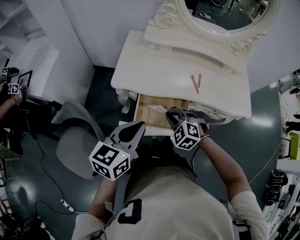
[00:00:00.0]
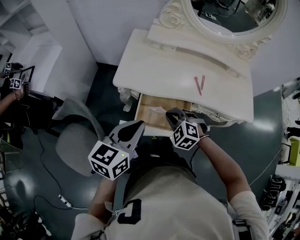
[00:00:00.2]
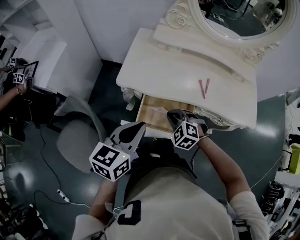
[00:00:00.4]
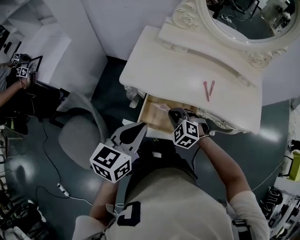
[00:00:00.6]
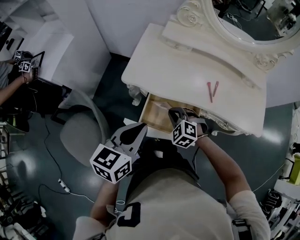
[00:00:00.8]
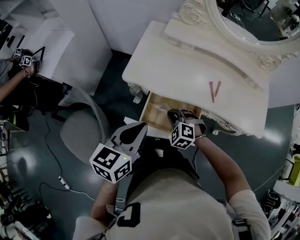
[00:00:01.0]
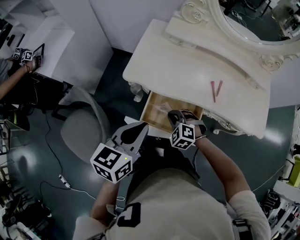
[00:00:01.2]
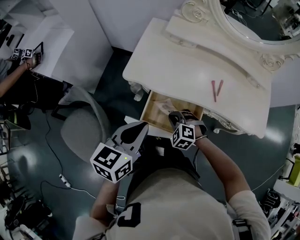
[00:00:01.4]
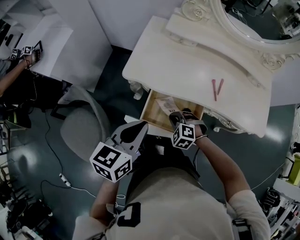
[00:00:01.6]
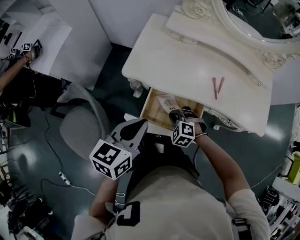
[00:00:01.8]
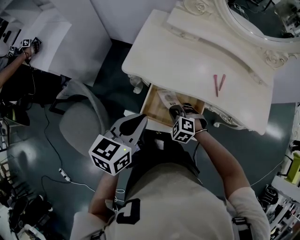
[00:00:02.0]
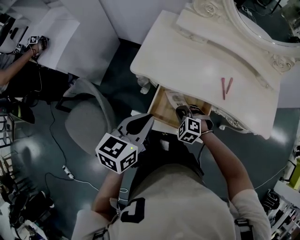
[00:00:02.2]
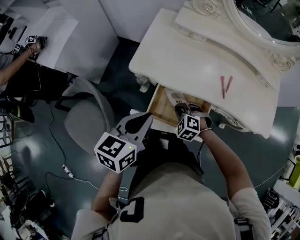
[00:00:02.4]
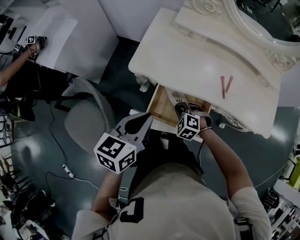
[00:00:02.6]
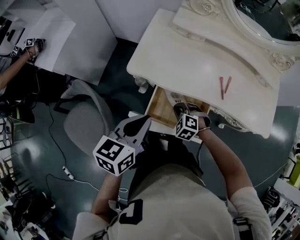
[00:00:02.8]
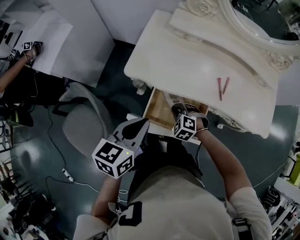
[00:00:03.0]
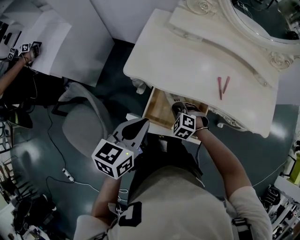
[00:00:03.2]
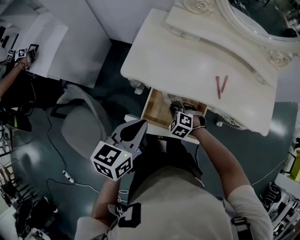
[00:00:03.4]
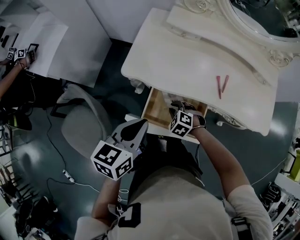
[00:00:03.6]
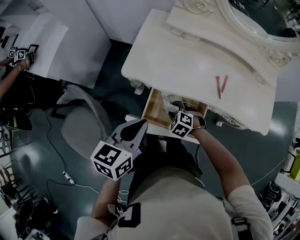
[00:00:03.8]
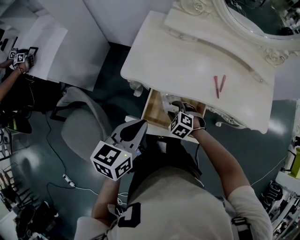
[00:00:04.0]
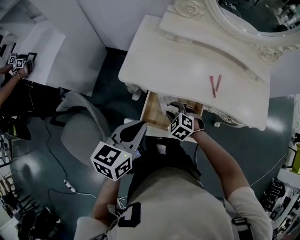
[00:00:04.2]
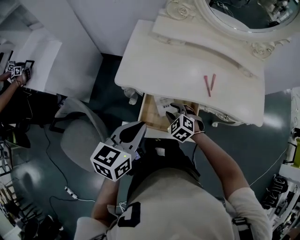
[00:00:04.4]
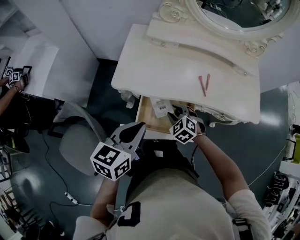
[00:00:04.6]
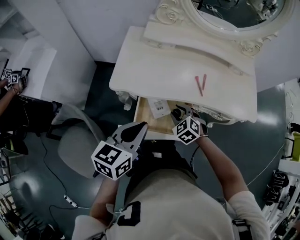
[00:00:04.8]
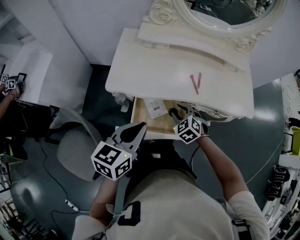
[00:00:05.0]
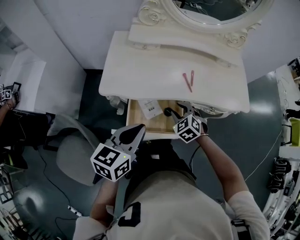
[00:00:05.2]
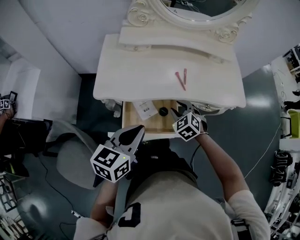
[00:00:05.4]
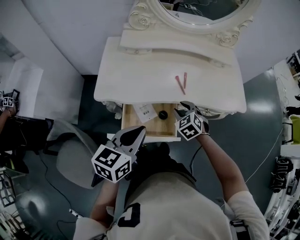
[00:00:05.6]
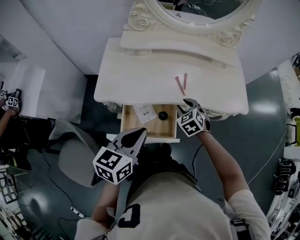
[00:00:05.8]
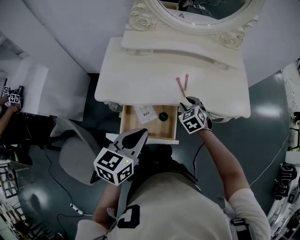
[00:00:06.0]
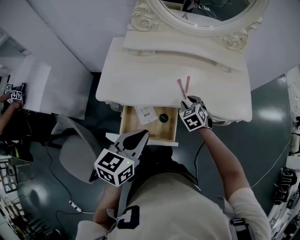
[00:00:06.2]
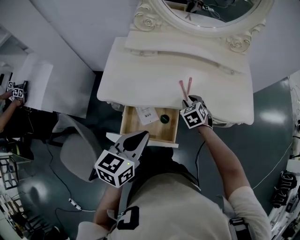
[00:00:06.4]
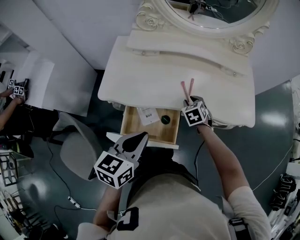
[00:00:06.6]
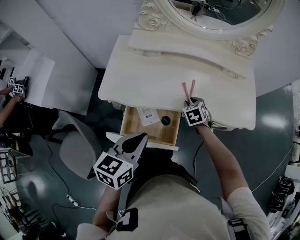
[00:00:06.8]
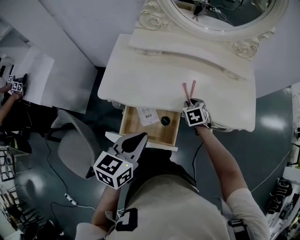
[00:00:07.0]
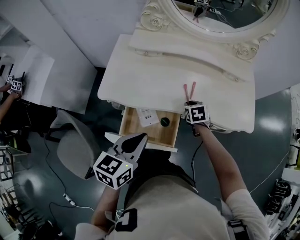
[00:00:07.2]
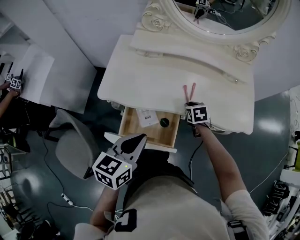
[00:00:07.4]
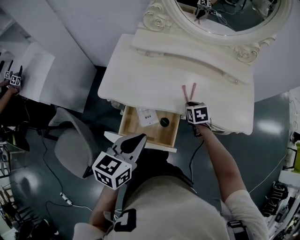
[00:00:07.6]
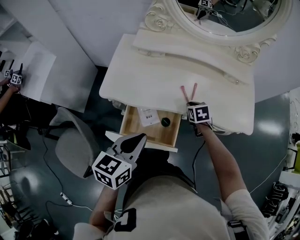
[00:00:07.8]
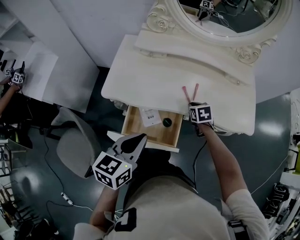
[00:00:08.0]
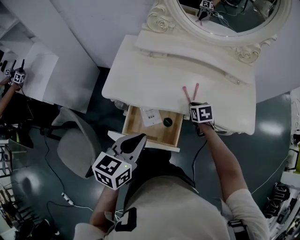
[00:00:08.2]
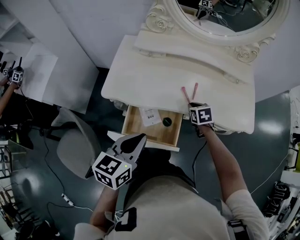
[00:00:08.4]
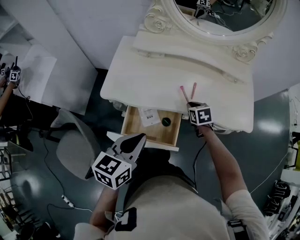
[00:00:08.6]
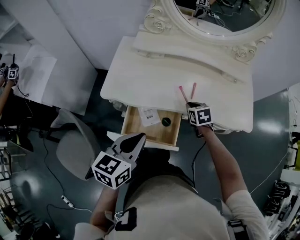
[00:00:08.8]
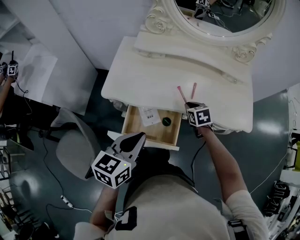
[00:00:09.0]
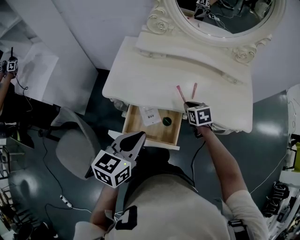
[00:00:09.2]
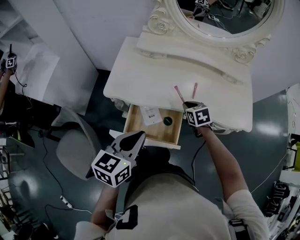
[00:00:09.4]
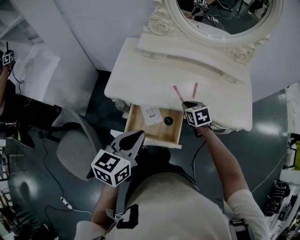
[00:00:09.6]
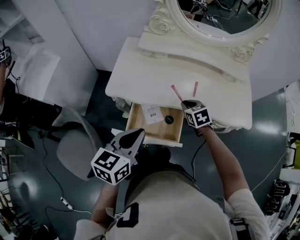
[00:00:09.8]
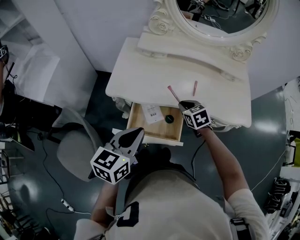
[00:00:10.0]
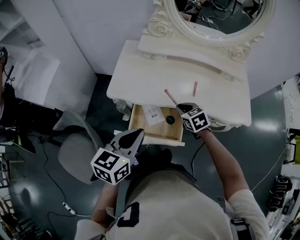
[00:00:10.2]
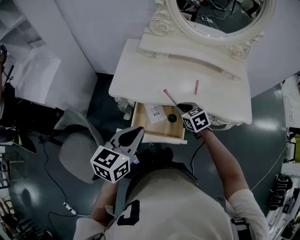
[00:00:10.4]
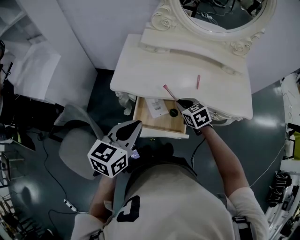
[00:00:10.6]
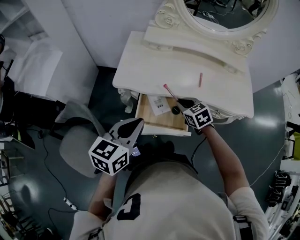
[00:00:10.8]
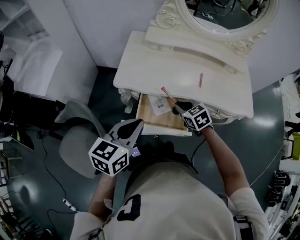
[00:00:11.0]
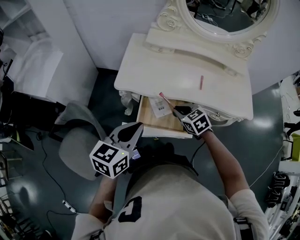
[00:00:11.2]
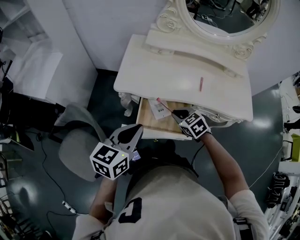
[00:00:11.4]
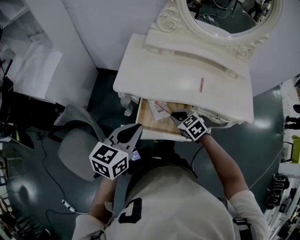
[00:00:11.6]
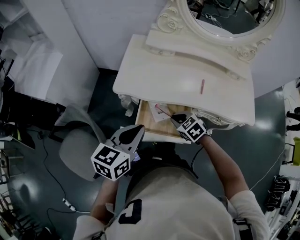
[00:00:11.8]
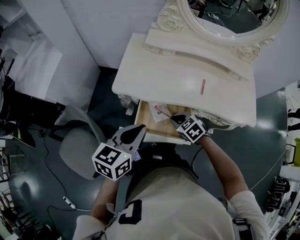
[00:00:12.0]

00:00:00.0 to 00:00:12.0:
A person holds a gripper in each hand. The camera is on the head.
00:00:00.0 to 00:00:01.6: The right gripper goes approximately 10 cm downward.
00:00:01.6 to 00:00:03.0: The grippers stay close to where they were, moving slightly.
00:00:03.0 to 00:00:04.4: The right gripper opens up.
00:00:04.4 to 00:00:06.0: The right gripper goes some 20 cm to the right and forward, and changes its angle by approximately 30 degrees. The left gripper moves to the right, some 10 cm.
00:00:06.0 to 00:00:07.6: The right gripper goes roughly 5 cm forward, changes its angle by roughly 30 degrees, and closes up.
00:00:07.6 to 00:00:09.0: The grippers make only small movements.
00:00:09.0 to 00:00:10.4: The right gripper moves to the left and backward, approximately 10 cm; the left gripper shifts about 5 cm to the left.
00:00:10.4 to 00:00:12.0: The right gripper shifts roughly 5 cm to the left and downward.

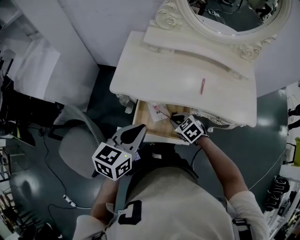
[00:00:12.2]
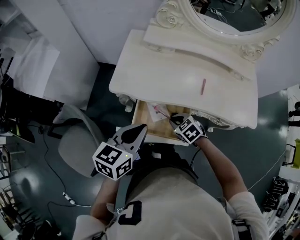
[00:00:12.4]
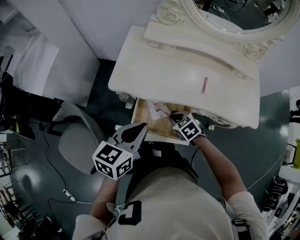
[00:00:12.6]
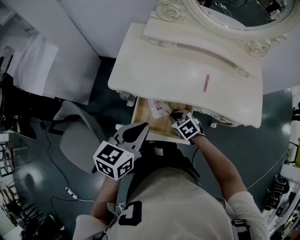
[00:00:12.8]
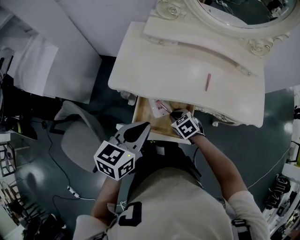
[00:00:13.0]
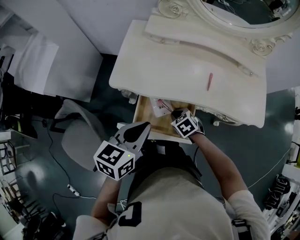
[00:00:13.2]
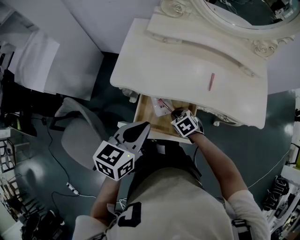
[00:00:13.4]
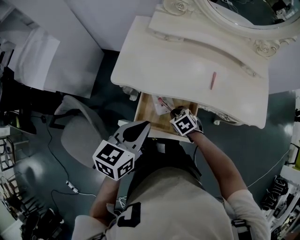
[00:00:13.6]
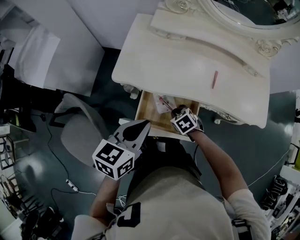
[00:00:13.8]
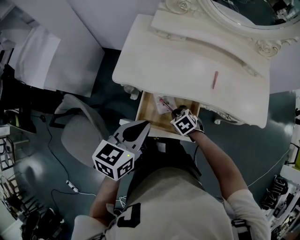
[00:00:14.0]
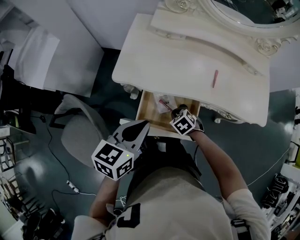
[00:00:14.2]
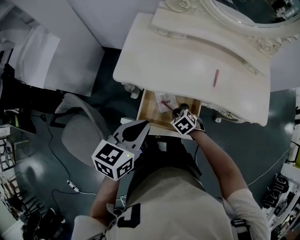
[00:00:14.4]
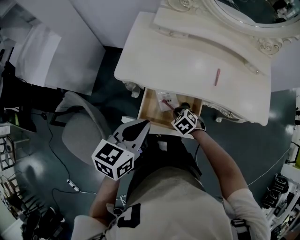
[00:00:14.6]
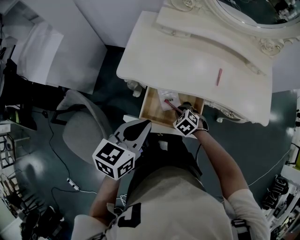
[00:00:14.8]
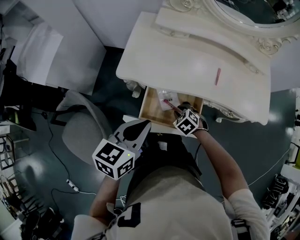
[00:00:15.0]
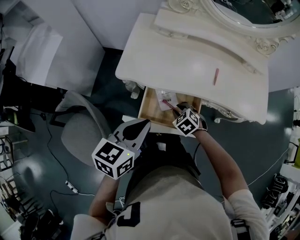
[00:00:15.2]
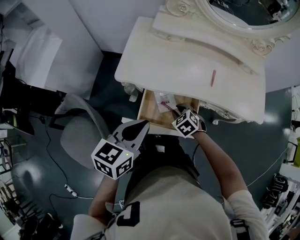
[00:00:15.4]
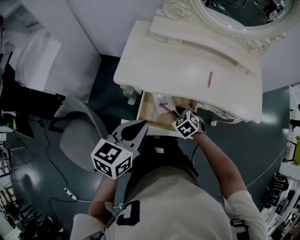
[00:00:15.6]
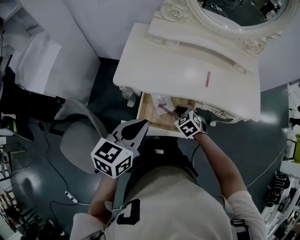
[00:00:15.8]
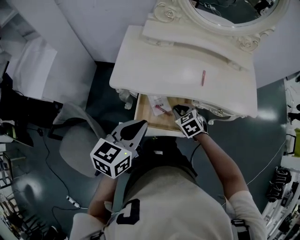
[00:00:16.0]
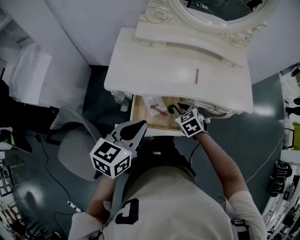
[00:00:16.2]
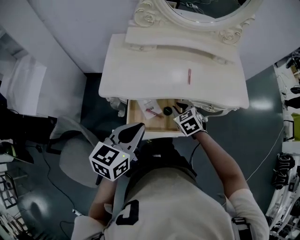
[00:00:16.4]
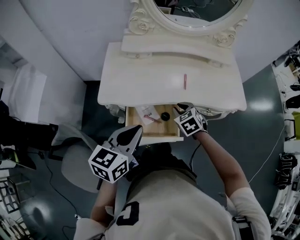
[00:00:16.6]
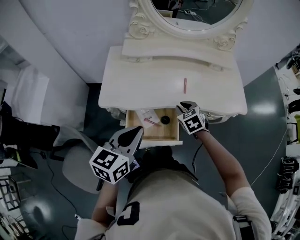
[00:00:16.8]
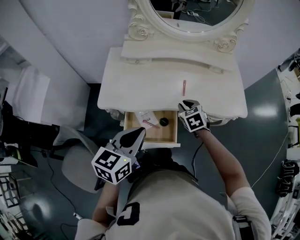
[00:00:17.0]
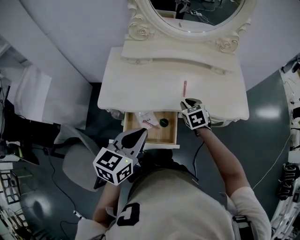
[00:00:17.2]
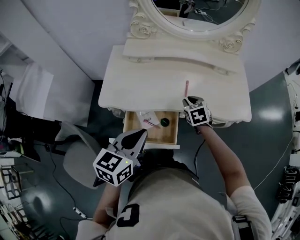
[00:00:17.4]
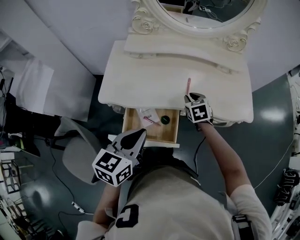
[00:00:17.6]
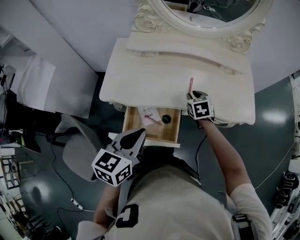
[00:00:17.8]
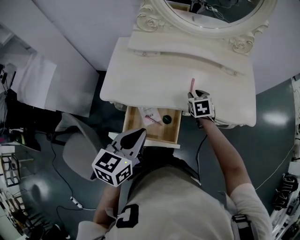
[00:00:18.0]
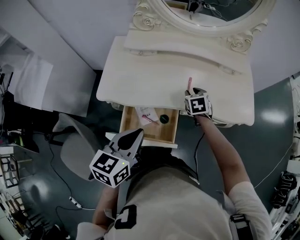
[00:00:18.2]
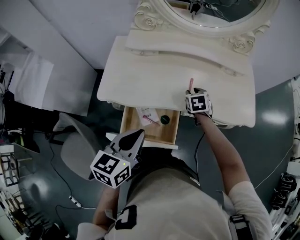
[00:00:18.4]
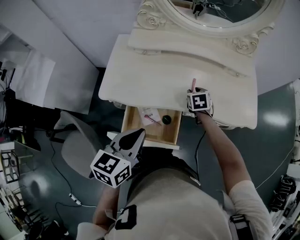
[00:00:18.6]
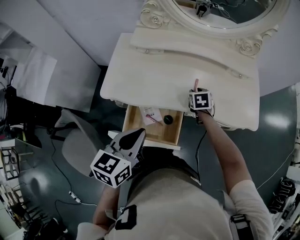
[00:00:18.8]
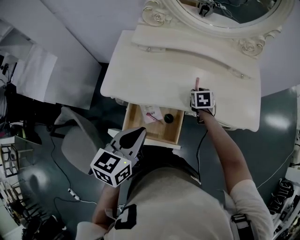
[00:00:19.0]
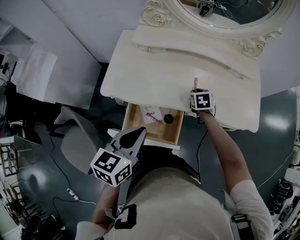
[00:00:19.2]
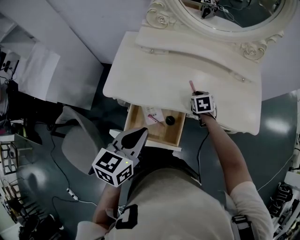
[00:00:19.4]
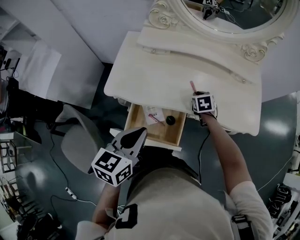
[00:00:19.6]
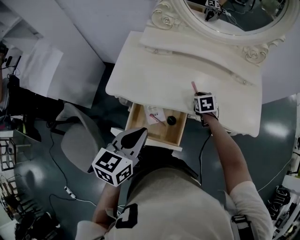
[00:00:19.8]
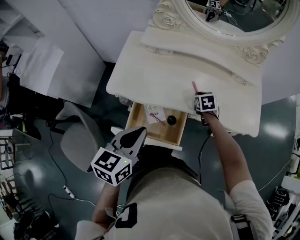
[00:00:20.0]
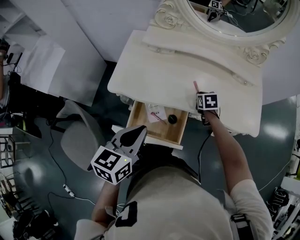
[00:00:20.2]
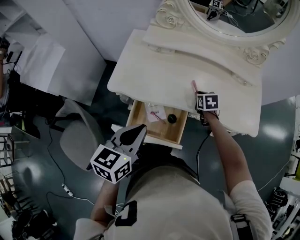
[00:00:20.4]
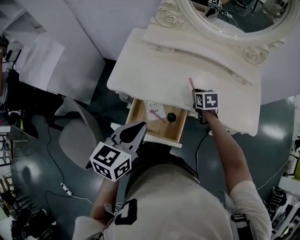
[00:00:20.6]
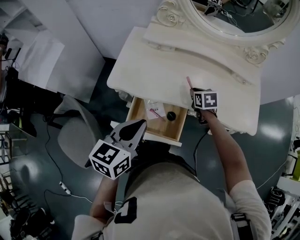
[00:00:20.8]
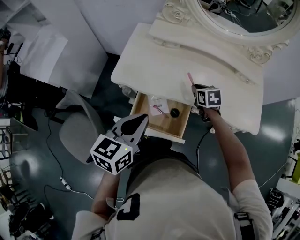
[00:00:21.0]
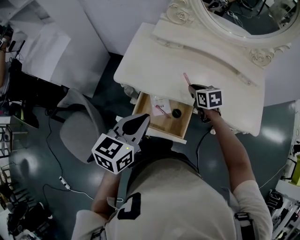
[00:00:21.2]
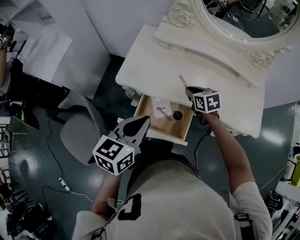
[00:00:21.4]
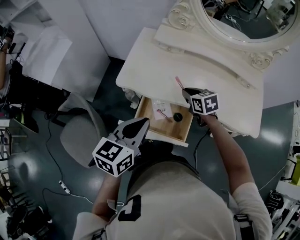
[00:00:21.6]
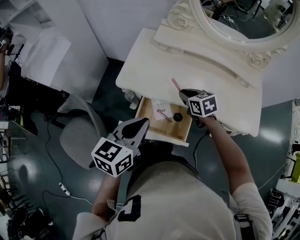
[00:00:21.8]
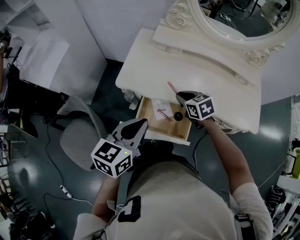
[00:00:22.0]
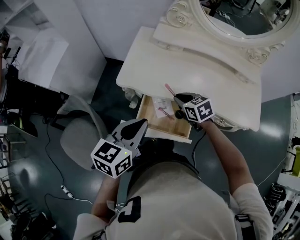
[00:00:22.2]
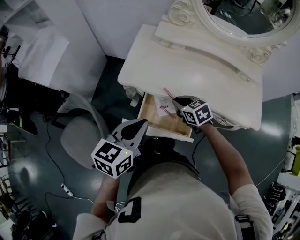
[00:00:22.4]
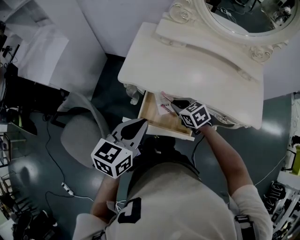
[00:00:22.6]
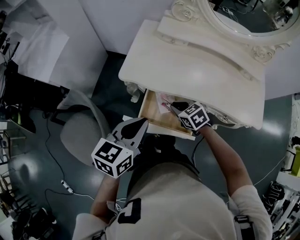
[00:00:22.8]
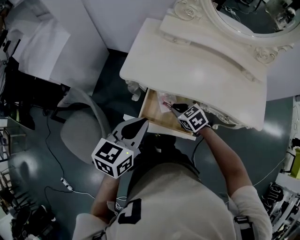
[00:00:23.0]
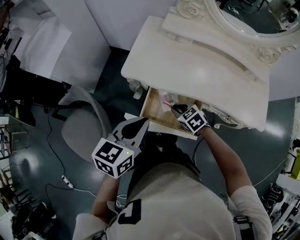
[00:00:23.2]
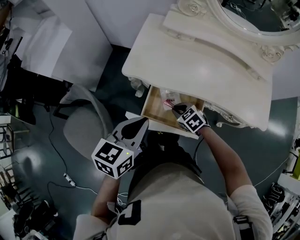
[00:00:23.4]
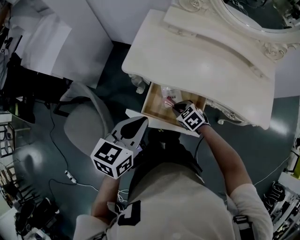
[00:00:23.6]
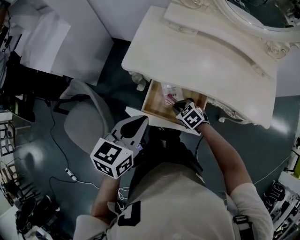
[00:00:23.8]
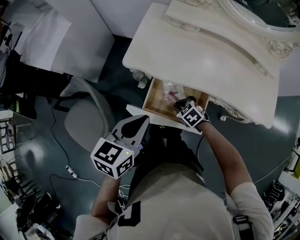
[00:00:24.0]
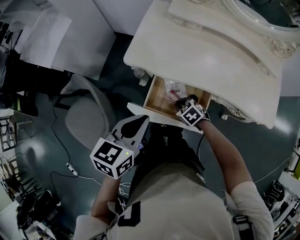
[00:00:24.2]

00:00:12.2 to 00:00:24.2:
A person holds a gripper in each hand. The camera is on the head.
00:00:12.2 to 00:00:13.8: The right gripper goes roughly 10 cm downward.
00:00:13.8 to 00:00:15.2: The grippers stay close to where they were, moving slightly.
00:00:15.2 to 00:00:16.6: The left gripper ends up roughly 5 cm from where it was, while the right gripper moves upward and to the right, about 15 cm, and swivels about 30 degrees.
00:00:16.6 to 00:00:18.2: The left gripper shifts about 5 cm to the right. Meanwhile the right gripper shifts approximately 15 cm forward and to the right.
00:00:18.2 to 00:00:19.8: There are only small adjustments of the grippers.
00:00:19.8 to 00:00:21.2: The right gripper goes about 10 cm to the left and upward.
00:00:21.2 to 00:00:22.6: The right gripper shifts about 15 cm to the left and backward. The left gripper is displaced to the left by approximately 5 cm.
00:00:22.6 to 00:00:24.2: The right gripper moves downward, roughly 15 cm, and rotates roughly 20 degrees.
